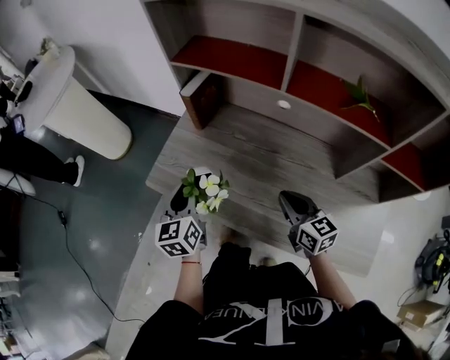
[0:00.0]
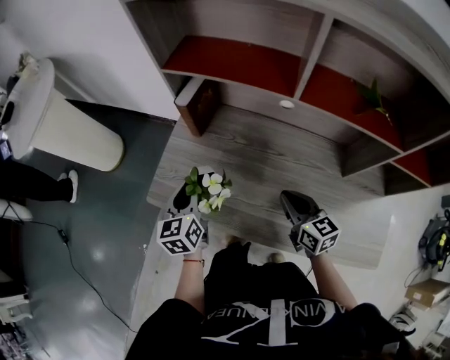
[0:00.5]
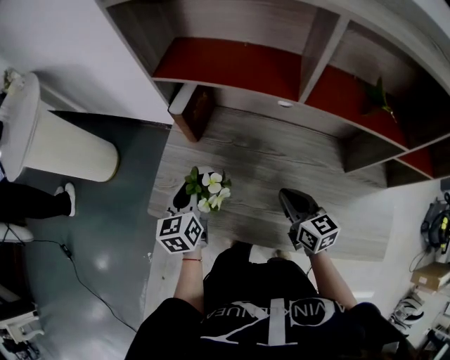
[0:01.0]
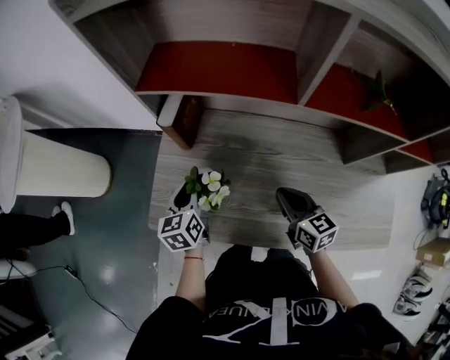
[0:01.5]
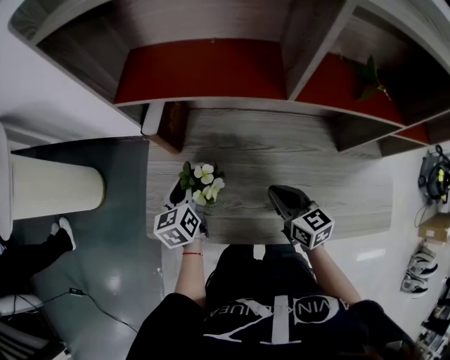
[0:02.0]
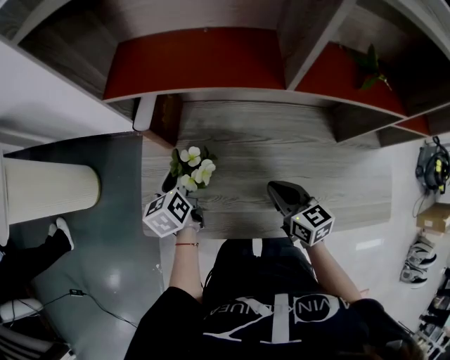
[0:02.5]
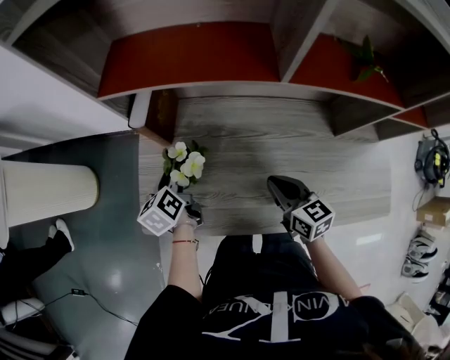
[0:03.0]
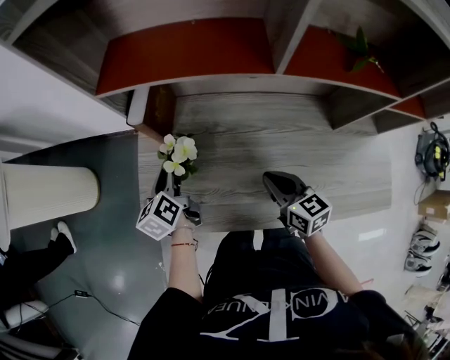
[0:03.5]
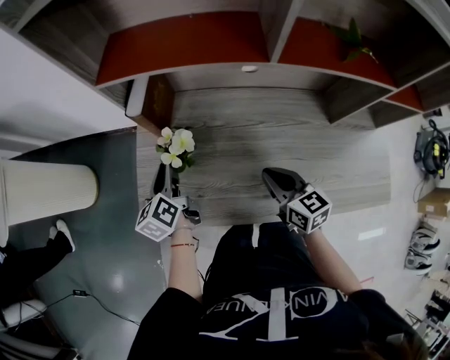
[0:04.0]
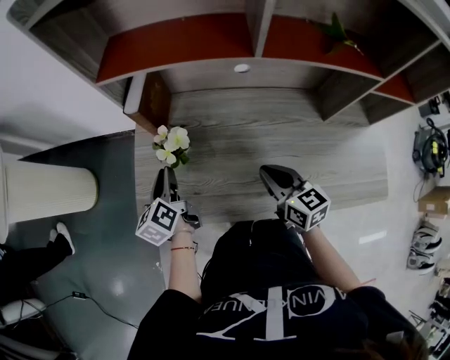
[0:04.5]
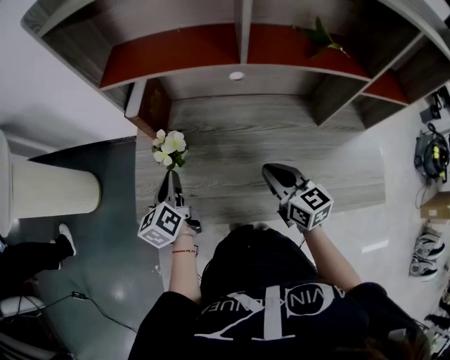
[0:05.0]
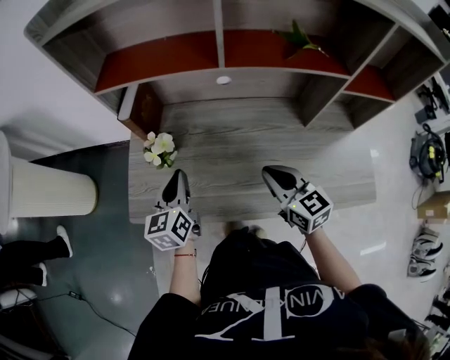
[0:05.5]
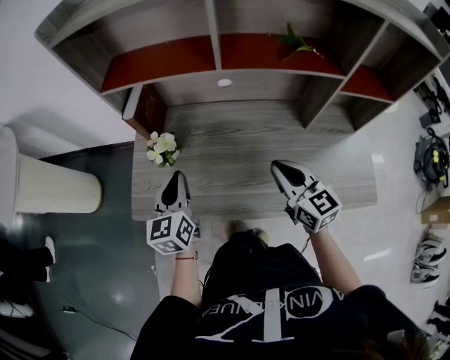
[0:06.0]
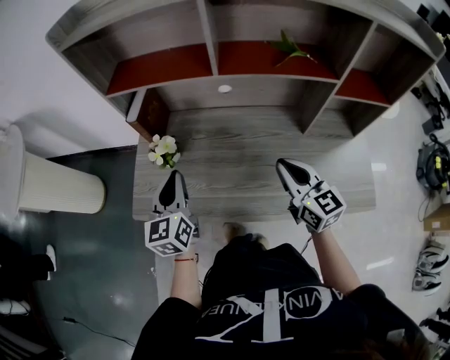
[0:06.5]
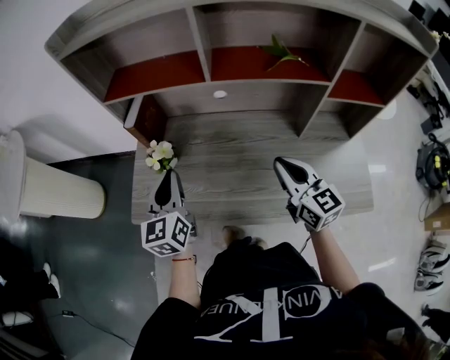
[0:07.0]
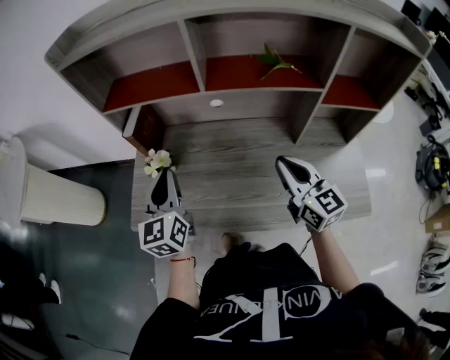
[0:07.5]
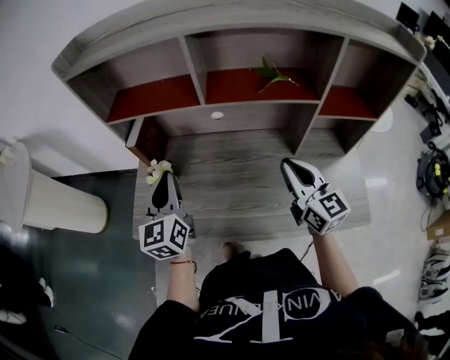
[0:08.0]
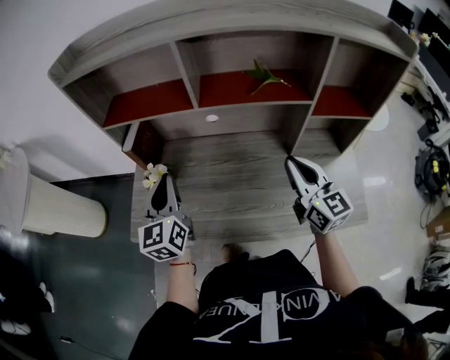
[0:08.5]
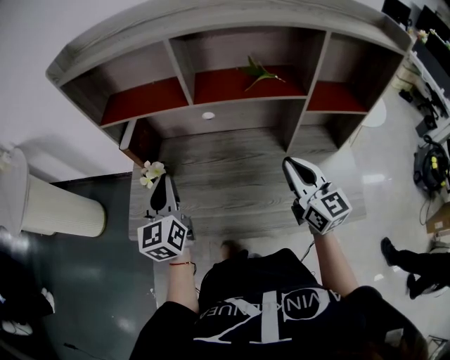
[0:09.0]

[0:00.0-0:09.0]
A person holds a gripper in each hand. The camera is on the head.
0:00.0 to 0:02.0: The left gripper moves forward and downward, roughly 20 cm, and swivels about 20 degrees. The right gripper heads forward and to the left, covering approximately 10 cm.
0:02.0 to 0:04.5: The left gripper changes place by about 5 cm.
0:04.5 to 0:07.0: The left gripper shifts roughly 20 cm upward, to the right and backward, and rotates roughly 30 degrees; the right gripper goes some 15 cm upward and to the right.
0:07.0 to 0:09.0: The left gripper shifts by approximately 5 cm, while the right gripper shifts about 5 cm to the right.

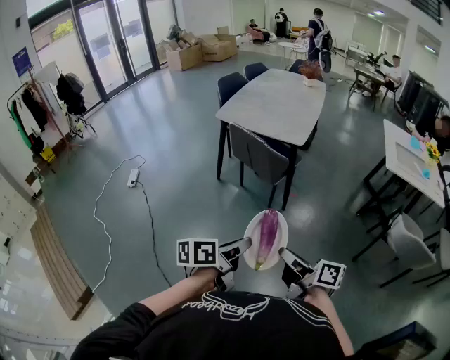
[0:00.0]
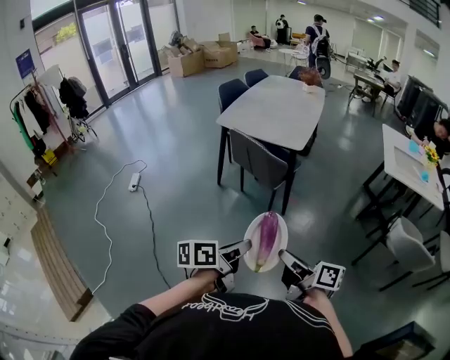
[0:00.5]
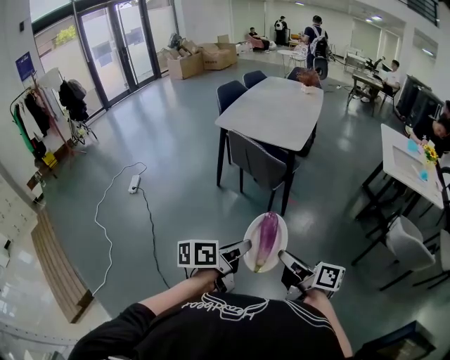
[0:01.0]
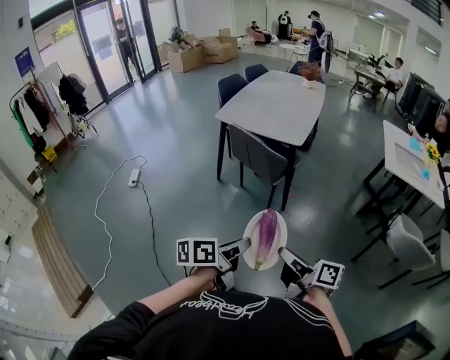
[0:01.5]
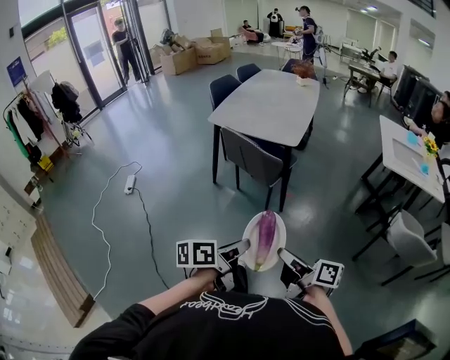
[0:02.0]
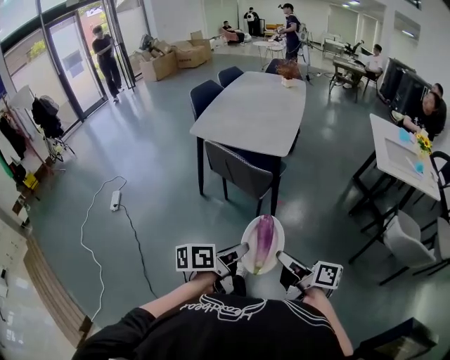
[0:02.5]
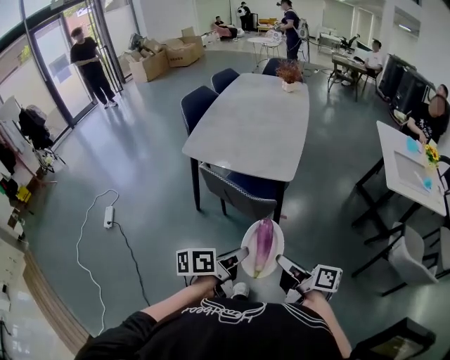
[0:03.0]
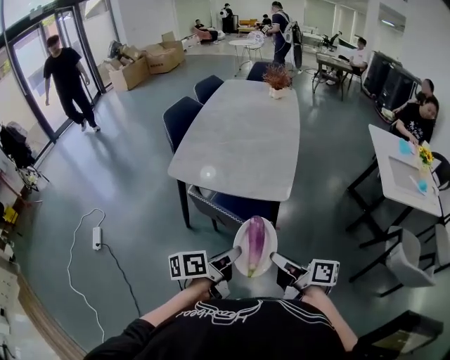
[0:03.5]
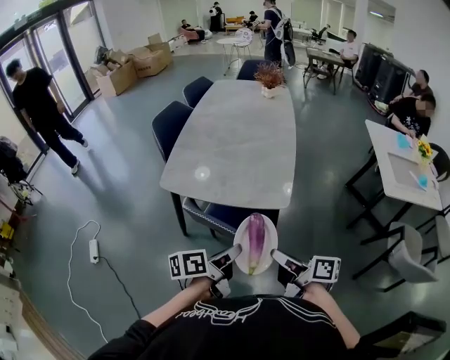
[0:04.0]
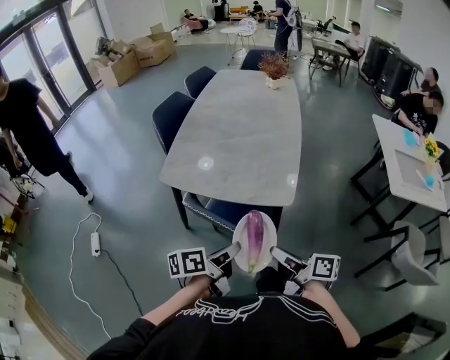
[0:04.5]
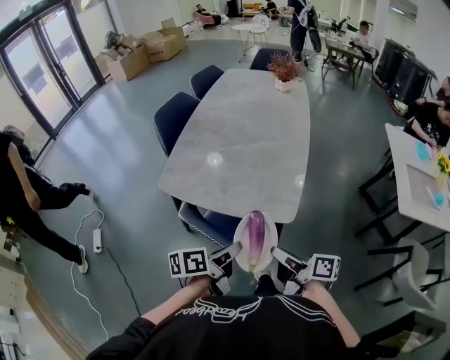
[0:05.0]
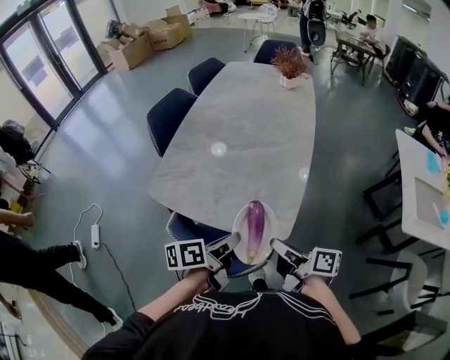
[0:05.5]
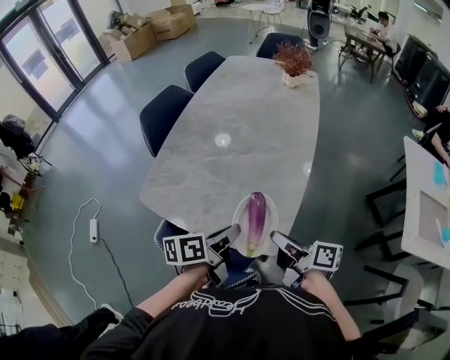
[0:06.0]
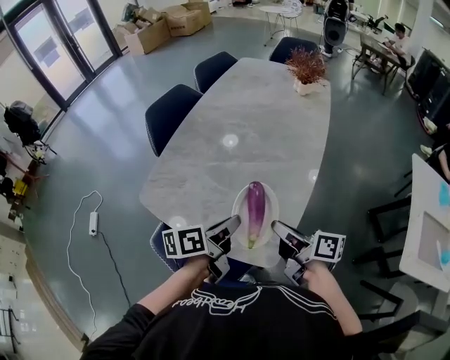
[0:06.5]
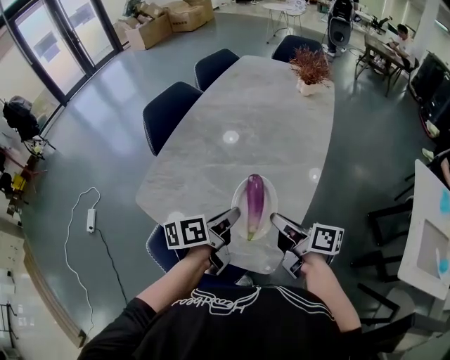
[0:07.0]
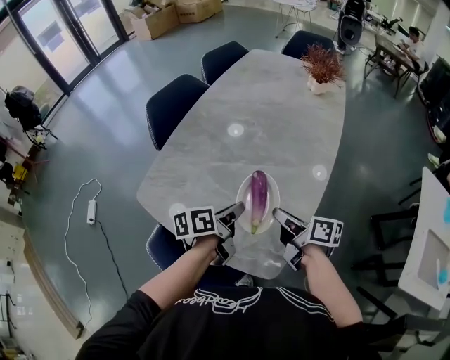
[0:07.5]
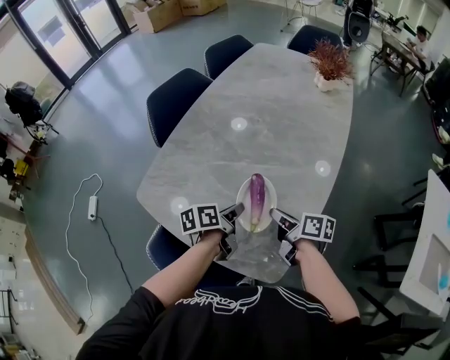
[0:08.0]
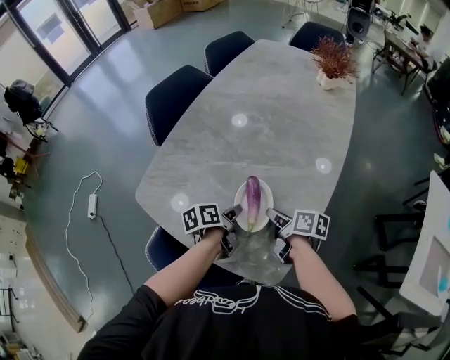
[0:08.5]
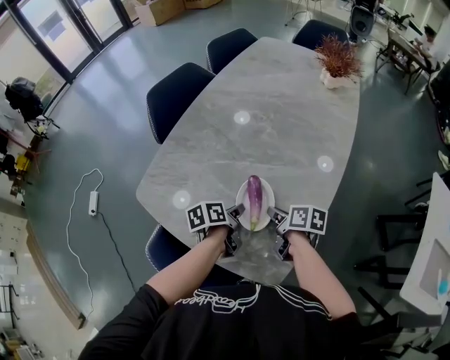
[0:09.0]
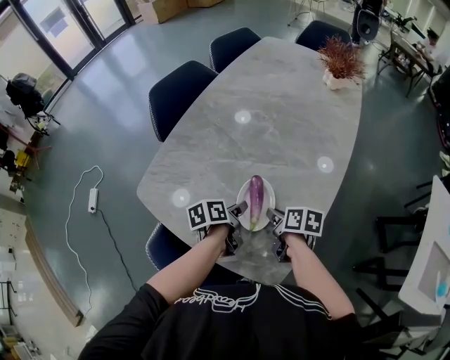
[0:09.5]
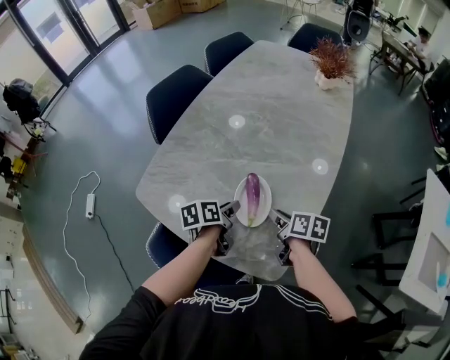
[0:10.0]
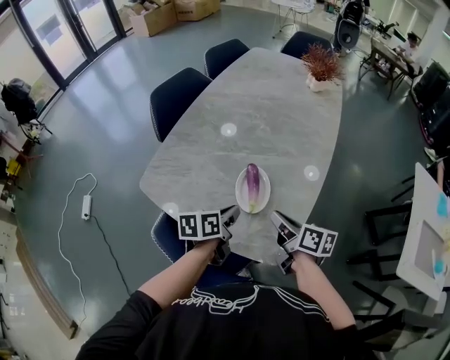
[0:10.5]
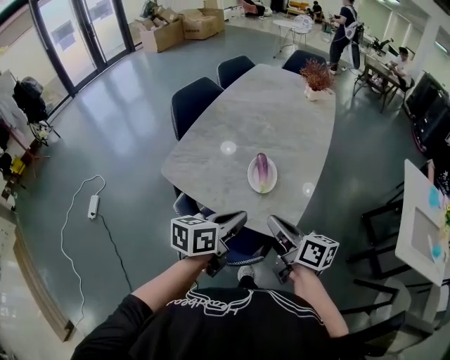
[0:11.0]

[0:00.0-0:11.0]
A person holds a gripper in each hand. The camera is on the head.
0:00.0 to 0:02.0: The grippers make only small movements.
0:02.0 to 0:03.5: The pair of grippers is taken forward, some 40 cm.
0:03.5 to 0:05.5: Both grippers move forward, roughly 25 cm.
0:05.5 to 0:07.5: The two grippers go roughly 25 cm forward.
0:07.5 to 0:09.0: The two grippers go approximately 10 cm downward. The right gripper changes its angle by approximately 20 degrees.
0:09.0 to 0:11.0: Both grippers move backward and upward, some 30 cm. The right gripper swivels approximately 30 degrees. Meanwhile the left gripper changes its angle by roughly 40 degrees.

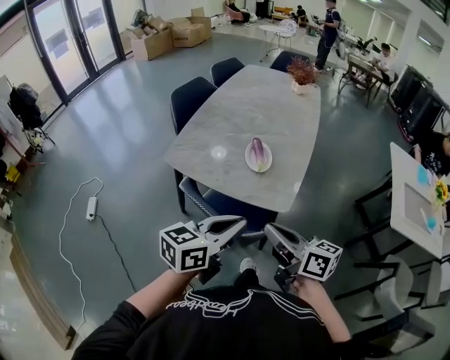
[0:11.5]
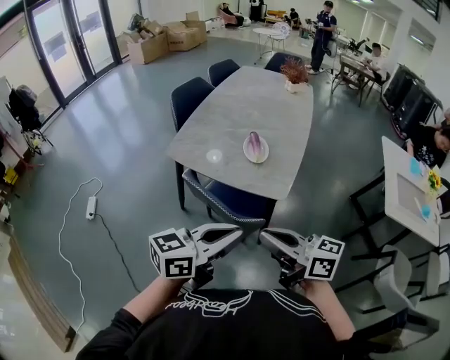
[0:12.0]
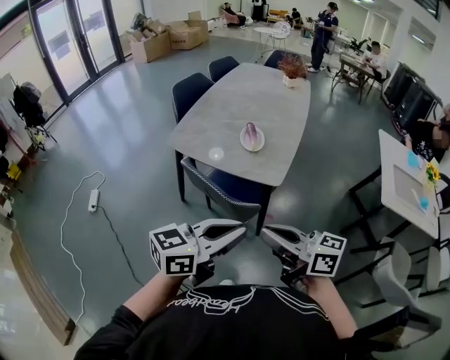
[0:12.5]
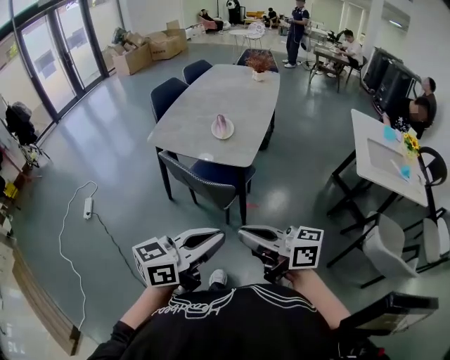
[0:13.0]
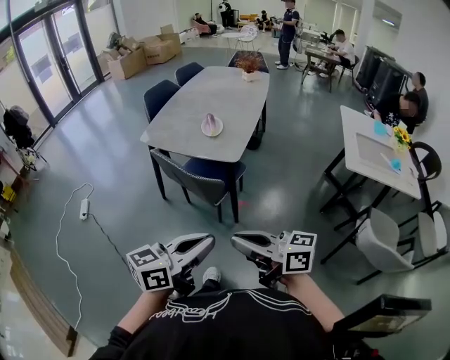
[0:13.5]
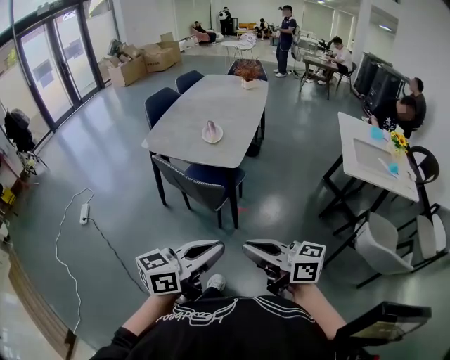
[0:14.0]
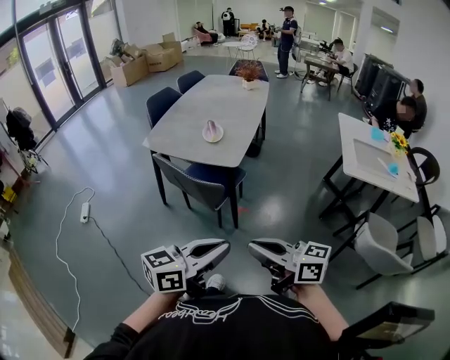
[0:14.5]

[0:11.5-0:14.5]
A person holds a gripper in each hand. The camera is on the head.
0:11.5 to 0:13.0: The grippers both shift backward by about 30 cm.
0:13.0 to 0:14.5: Both grippers travel together backward and to the right, roughly 10 cm.

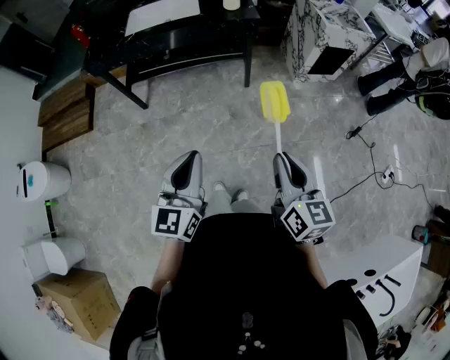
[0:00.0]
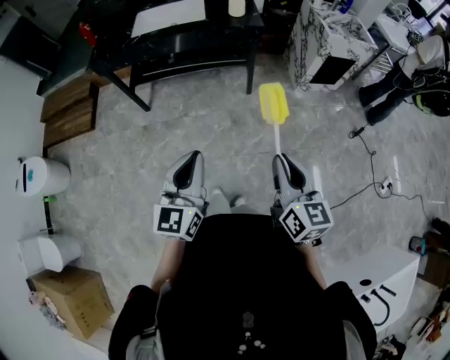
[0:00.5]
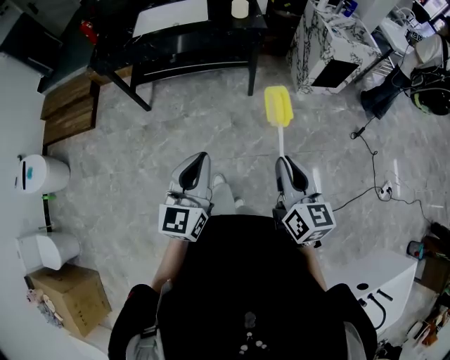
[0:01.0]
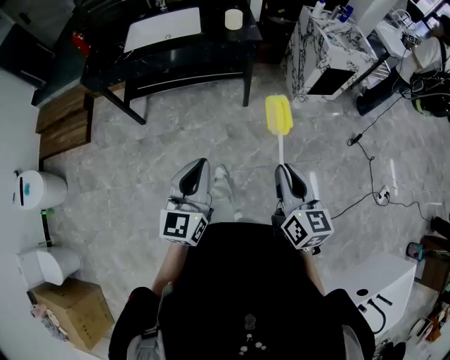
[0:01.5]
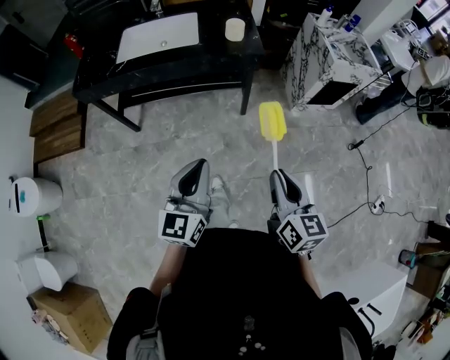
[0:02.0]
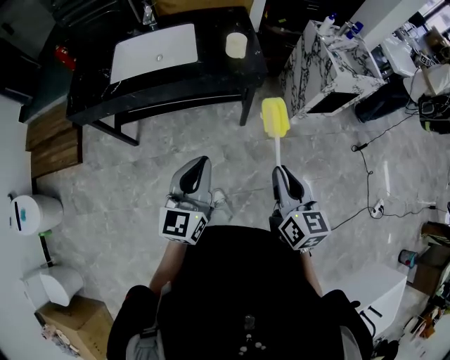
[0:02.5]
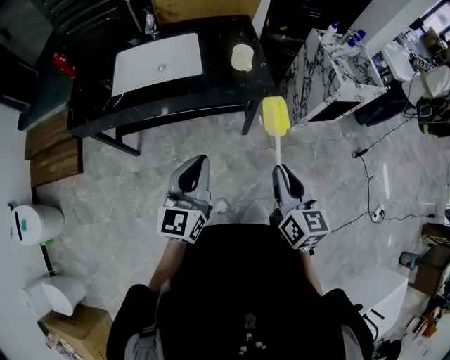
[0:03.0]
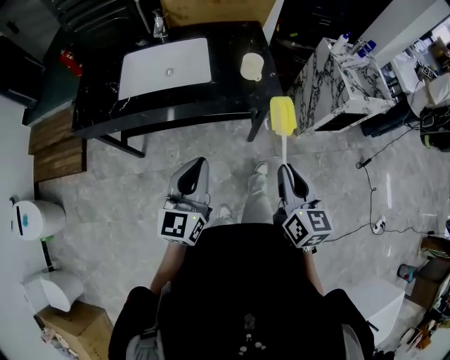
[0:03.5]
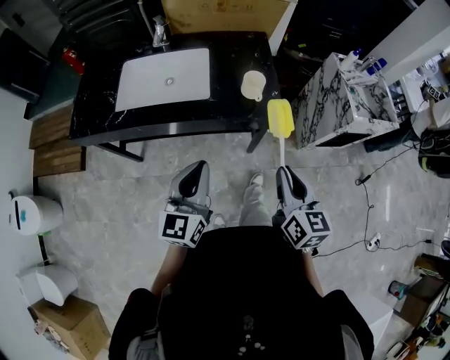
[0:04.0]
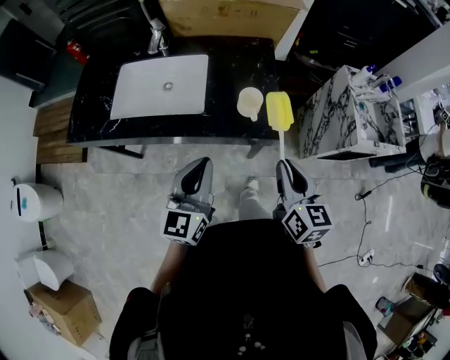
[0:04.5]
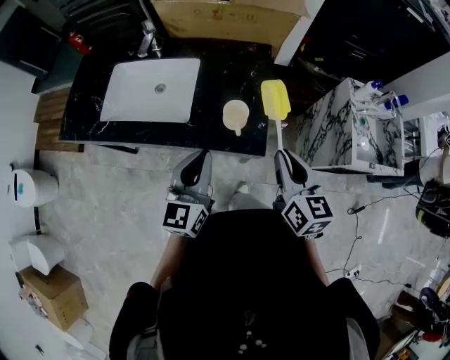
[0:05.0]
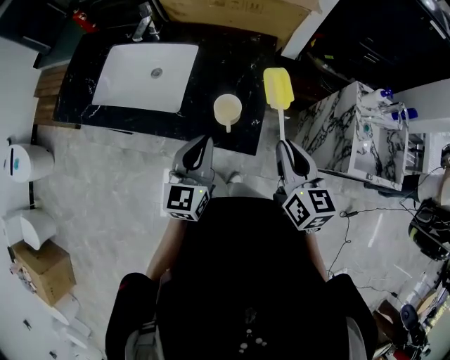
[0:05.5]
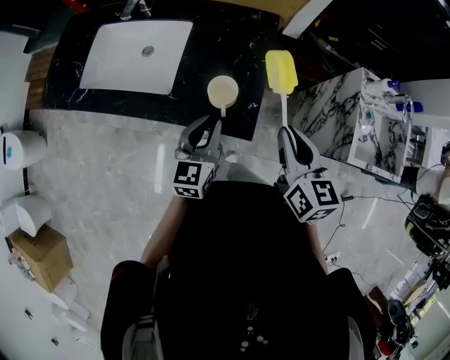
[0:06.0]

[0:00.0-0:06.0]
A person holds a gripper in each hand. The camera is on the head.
0:00.0 to 0:02.0: The two grippers go roughly 20 cm forward.
0:02.0 to 0:04.0: The two grippers go about 30 cm forward.
0:04.0 to 0:06.0: The right gripper shifts roughly 30 cm forward and to the right. Meanwhile the left gripper heads forward, to the right and downward, covering some 30 cm.
